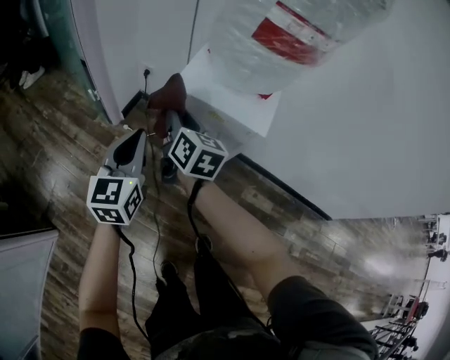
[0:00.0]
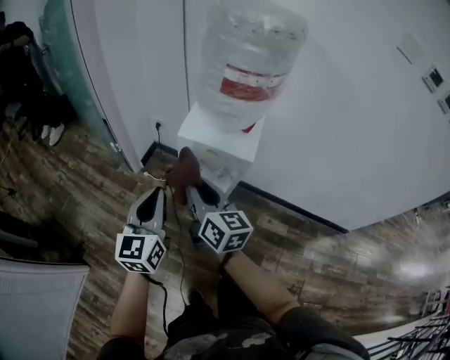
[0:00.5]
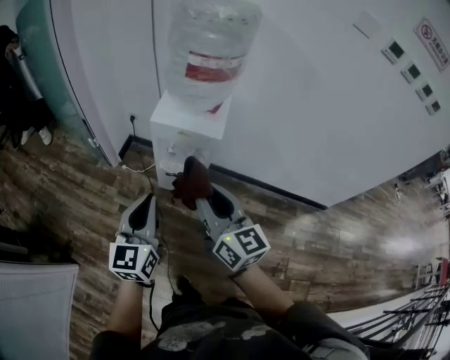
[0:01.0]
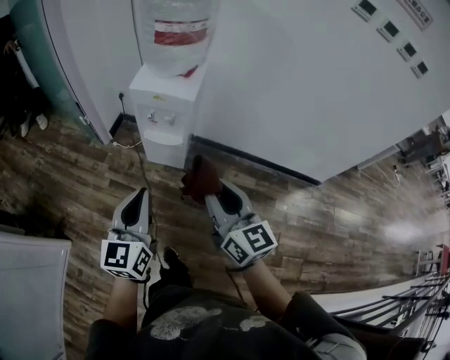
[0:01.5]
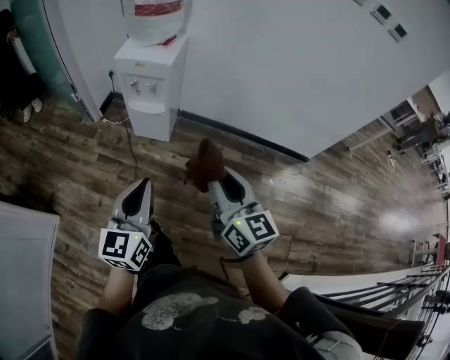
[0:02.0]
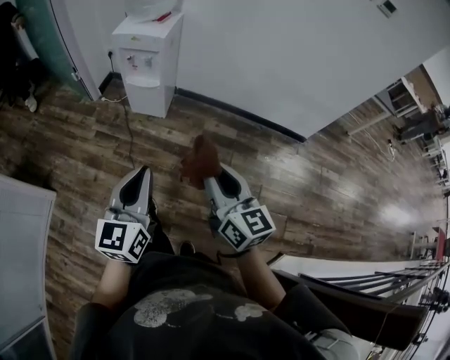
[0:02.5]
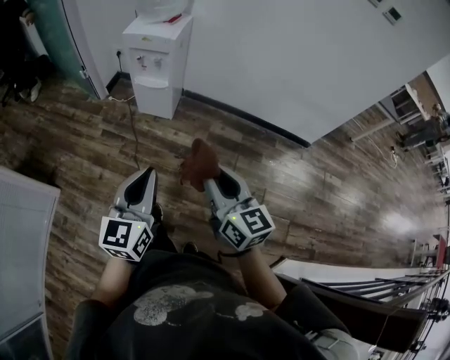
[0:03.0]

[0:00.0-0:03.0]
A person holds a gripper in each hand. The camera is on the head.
0:00.0 to 0:01.5: The right gripper shifts roughly 50 cm backward and to the right, and changes its angle by about 20 degrees. Meanwhile the left gripper goes some 35 cm backward.
0:01.5 to 0:03.0: The two grippers go roughly 30 cm backward and to the right.

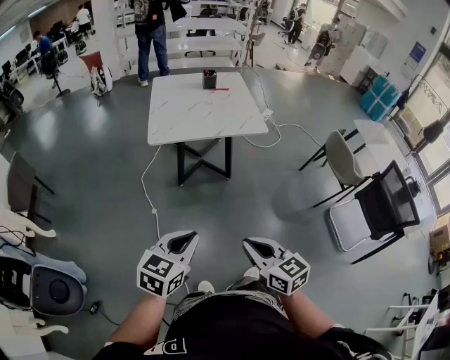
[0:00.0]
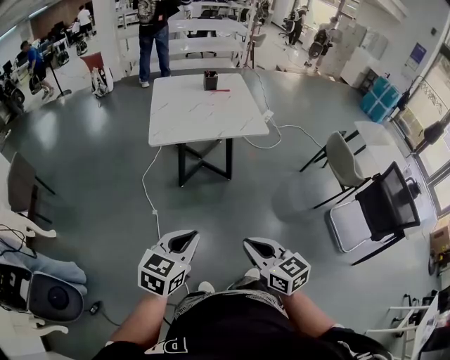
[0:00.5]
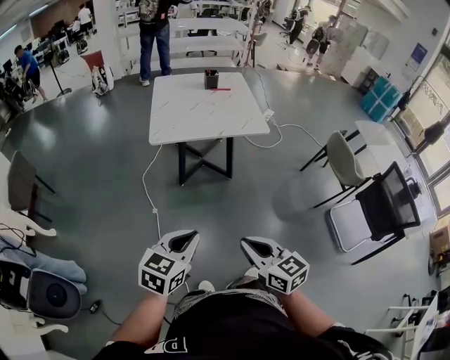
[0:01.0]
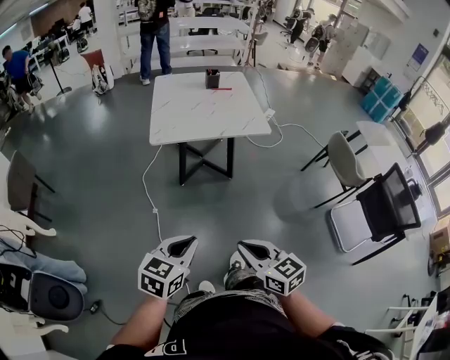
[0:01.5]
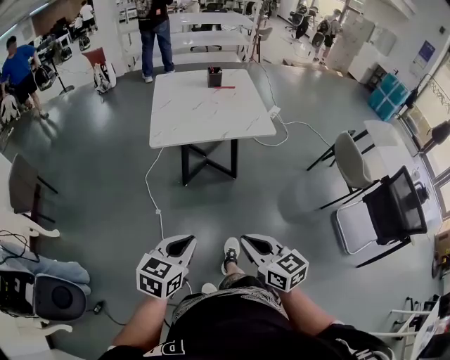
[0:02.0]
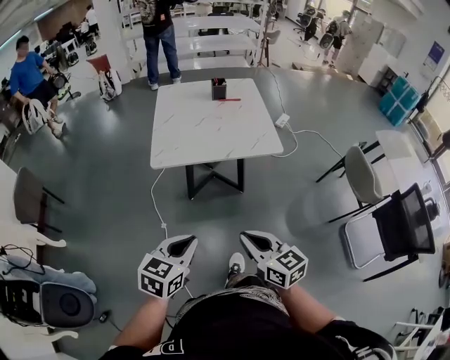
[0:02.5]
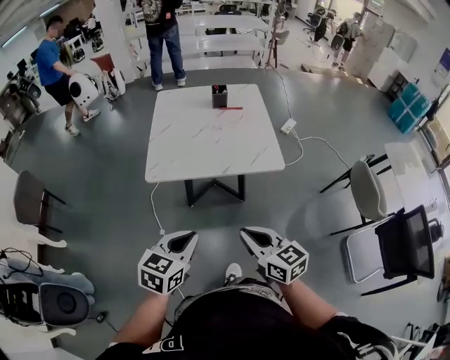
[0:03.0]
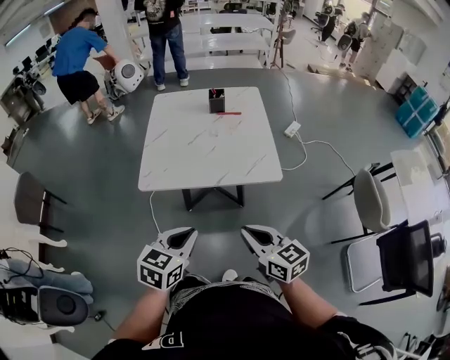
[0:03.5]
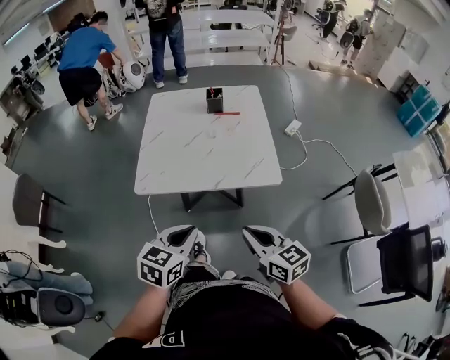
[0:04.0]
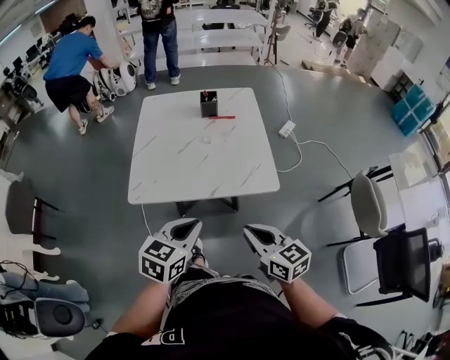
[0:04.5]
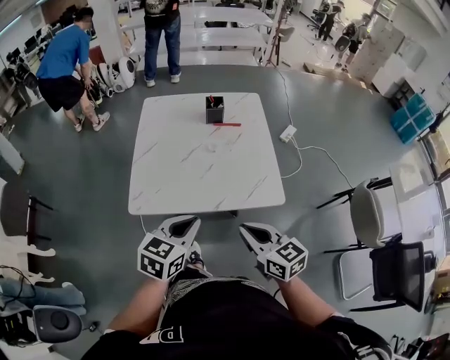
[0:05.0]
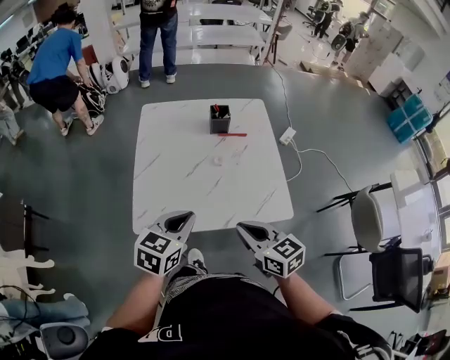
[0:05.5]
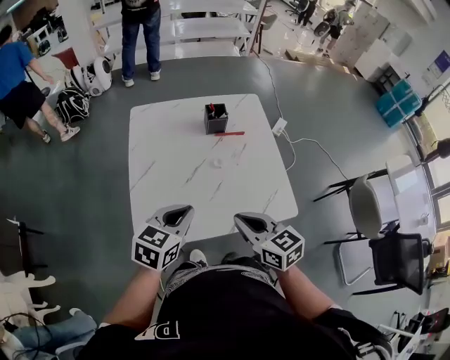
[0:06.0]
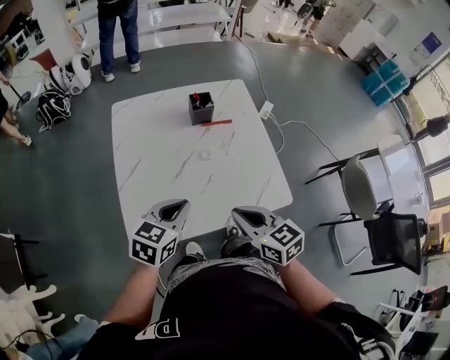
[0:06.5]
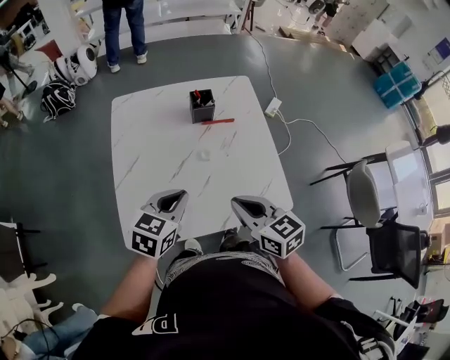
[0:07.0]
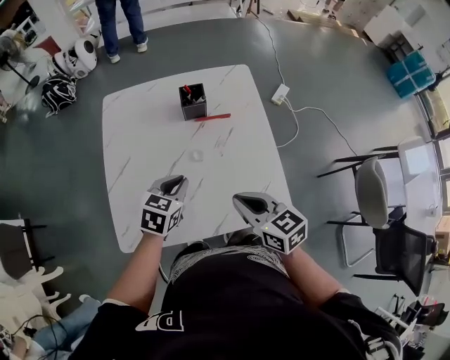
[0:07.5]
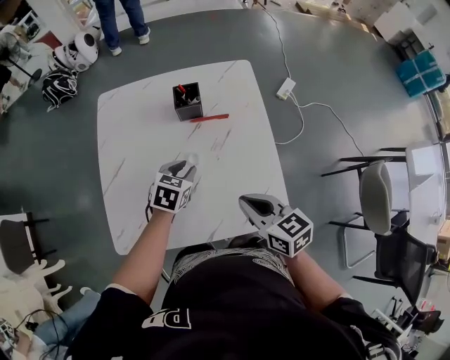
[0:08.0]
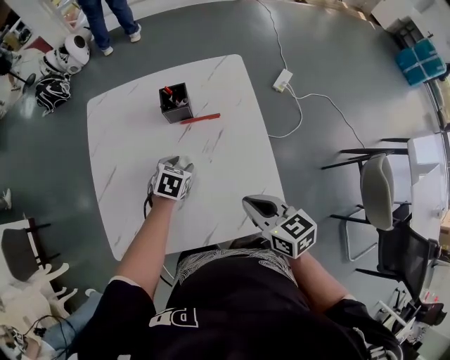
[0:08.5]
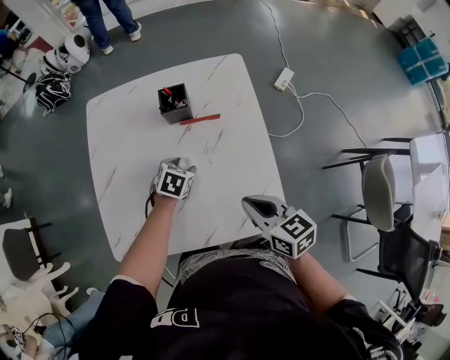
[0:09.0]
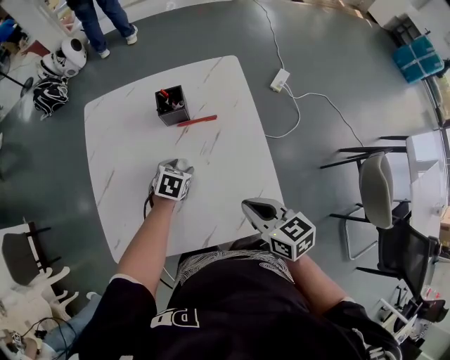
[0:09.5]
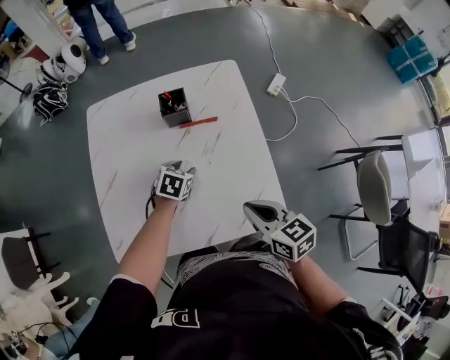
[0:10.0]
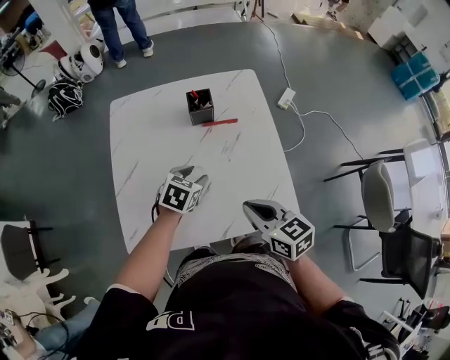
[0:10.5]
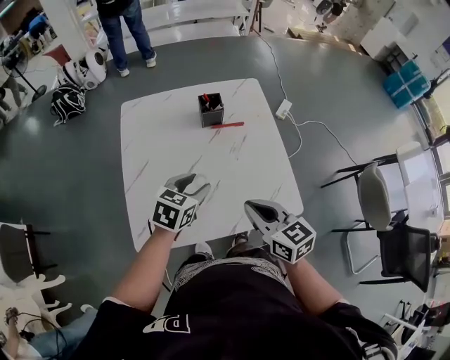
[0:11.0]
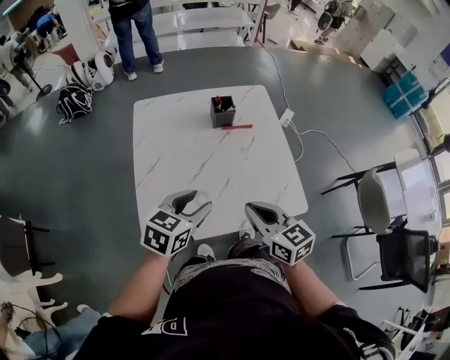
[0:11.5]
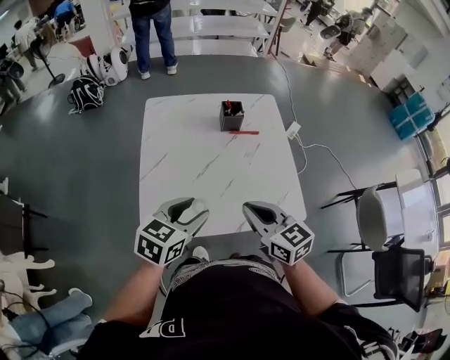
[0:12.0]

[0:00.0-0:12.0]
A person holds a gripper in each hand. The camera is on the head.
0:00.0 to 0:02.0: The left gripper ends up about 5 cm from where it was; the right gripper travels forward by some 5 cm.
0:02.0 to 0:04.0: The two grippers go some 35 cm forward and to the right.
0:04.0 to 0:06.0: The left gripper travels forward by approximately 30 cm. Meanwhile the right gripper shifts about 30 cm forward and to the left.
0:06.0 to 0:08.0: The left gripper is displaced forward, downward and to the right by approximately 30 cm, changes its angle by approximately 20 degrees, and opens its fingers. The right gripper shifts roughly 20 cm to the right, forward and downward.
0:08.0 to 0:10.0: The left gripper heads downward, covering about 5 cm, and opens its fingers.
0:10.0 to 0:12.0: The left gripper goes approximately 35 cm backward, upward and to the left, and rotates approximately 30 degrees. The right gripper shifts about 20 cm to the left, backward and upward.

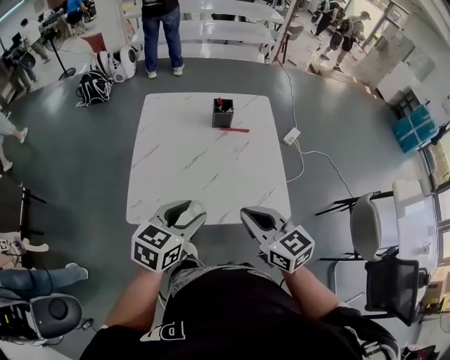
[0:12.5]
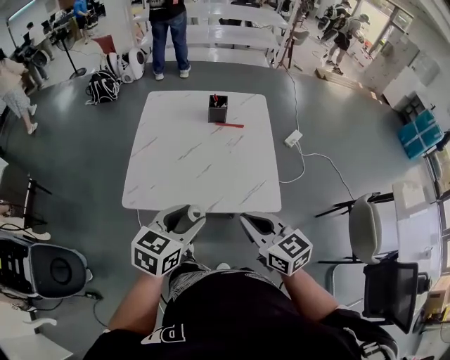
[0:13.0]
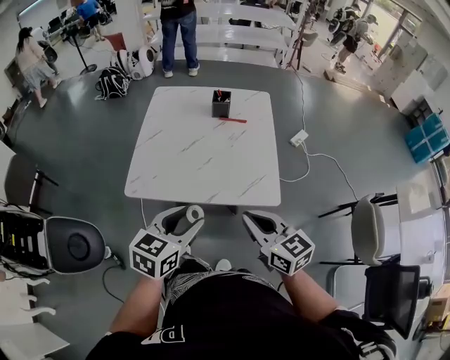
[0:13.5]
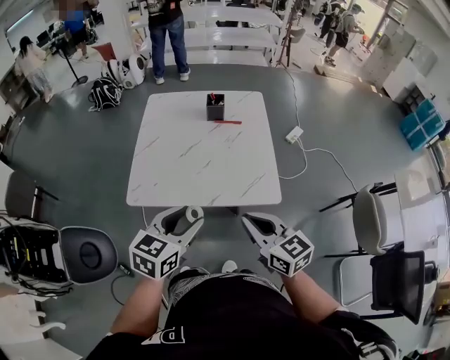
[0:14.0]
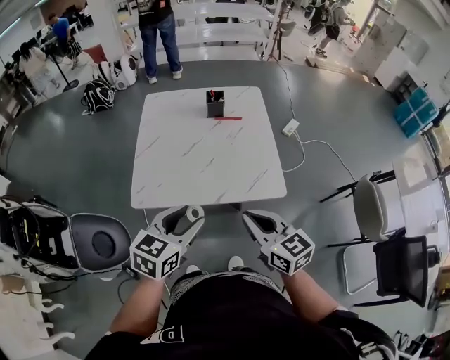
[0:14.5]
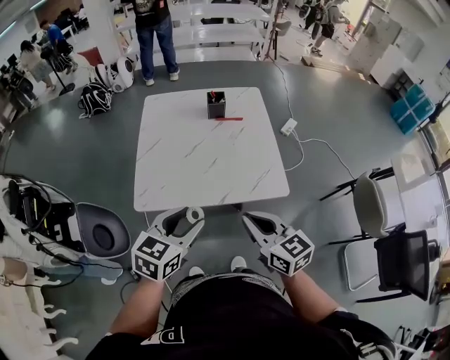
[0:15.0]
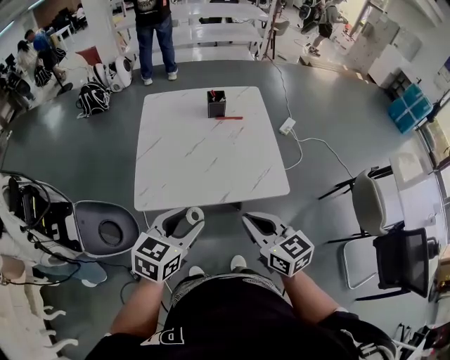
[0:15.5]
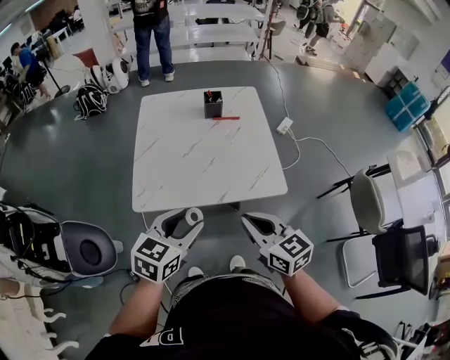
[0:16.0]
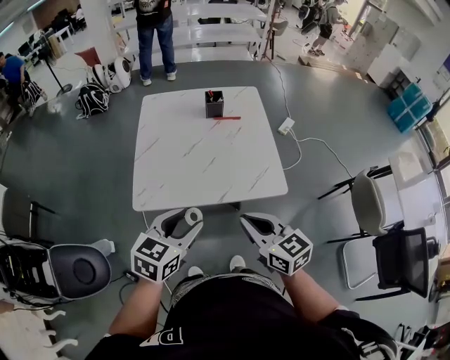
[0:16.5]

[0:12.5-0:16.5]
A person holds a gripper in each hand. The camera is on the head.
0:12.5 to 0:14.5: Both grippers travel together backward, about 10 cm.
0:14.5 to 0:16.5: The grippers make only small movements.

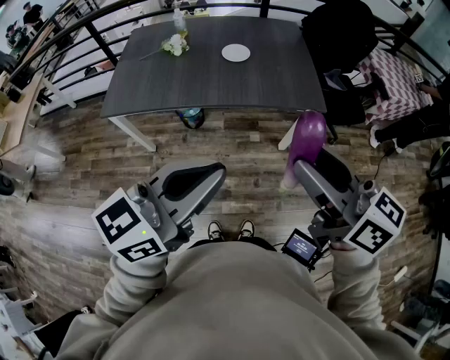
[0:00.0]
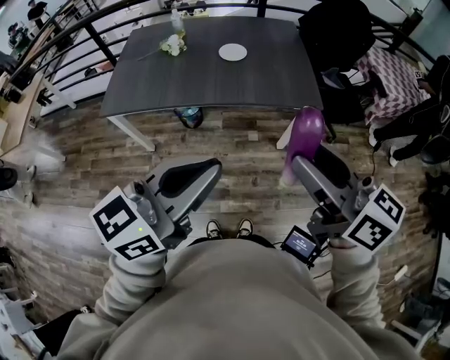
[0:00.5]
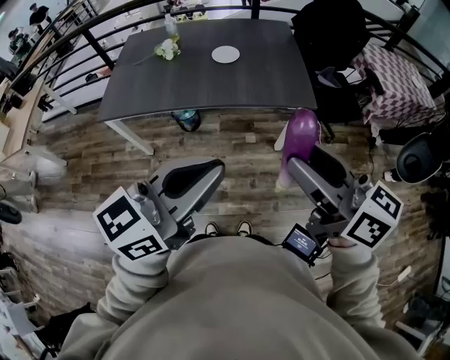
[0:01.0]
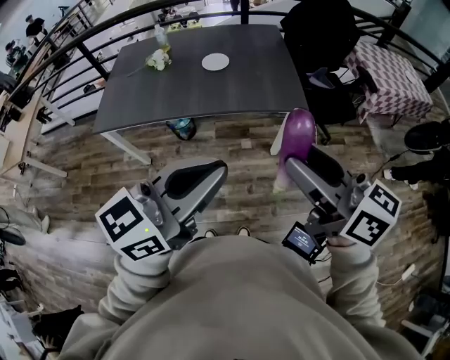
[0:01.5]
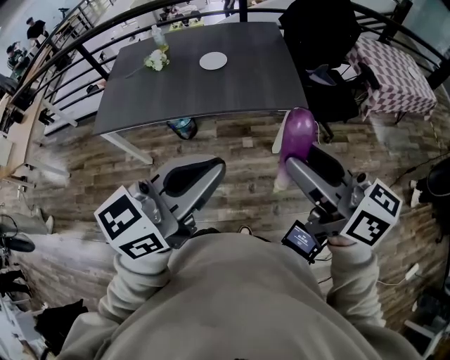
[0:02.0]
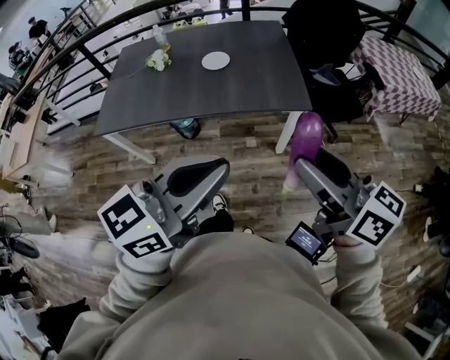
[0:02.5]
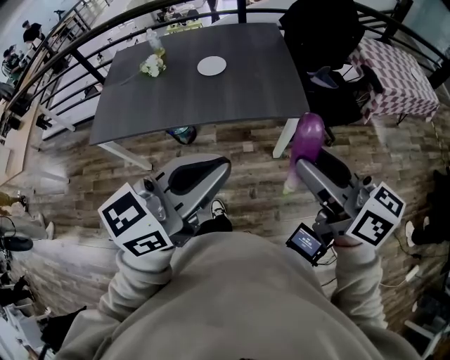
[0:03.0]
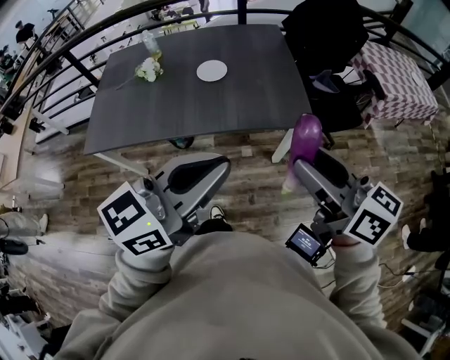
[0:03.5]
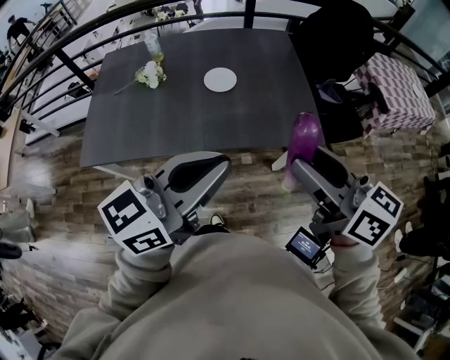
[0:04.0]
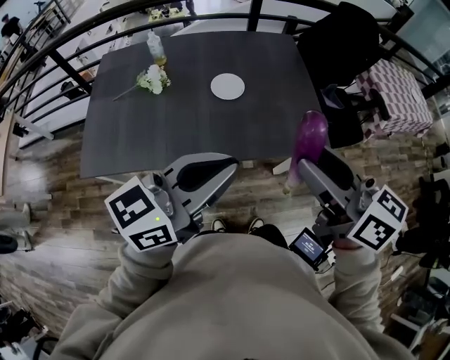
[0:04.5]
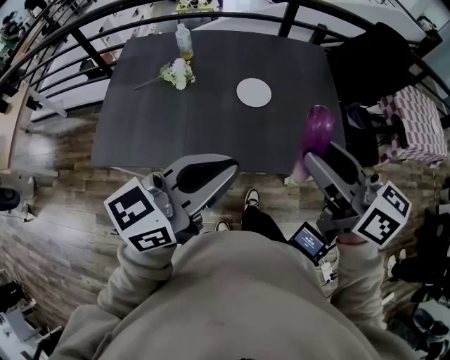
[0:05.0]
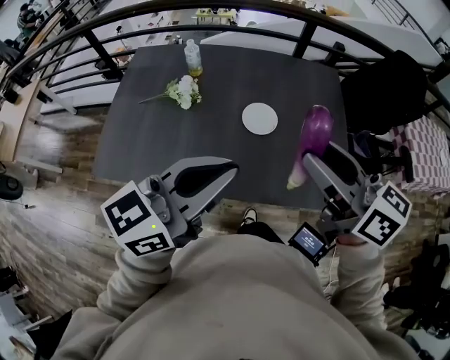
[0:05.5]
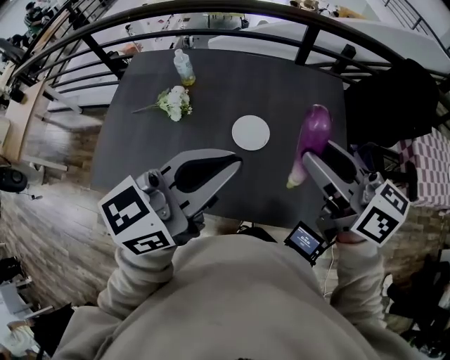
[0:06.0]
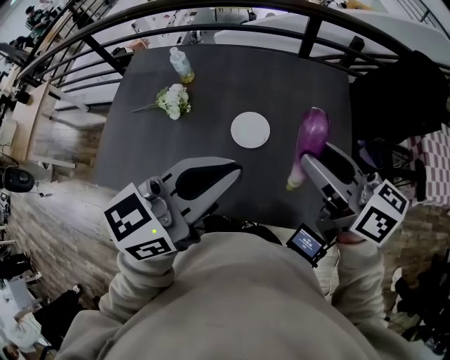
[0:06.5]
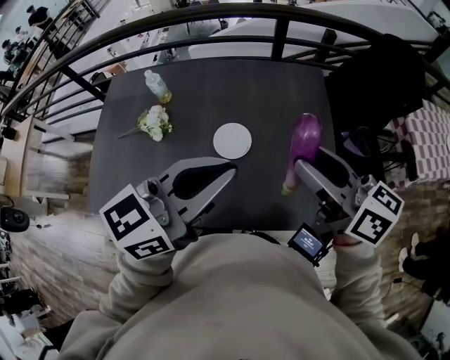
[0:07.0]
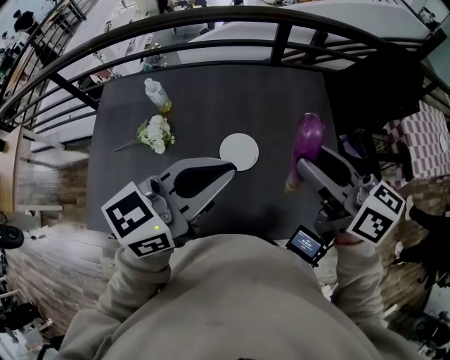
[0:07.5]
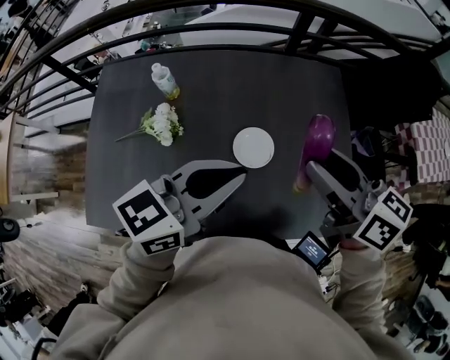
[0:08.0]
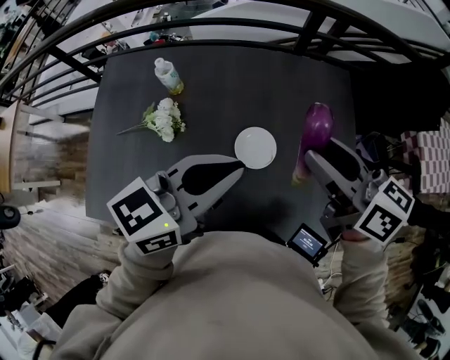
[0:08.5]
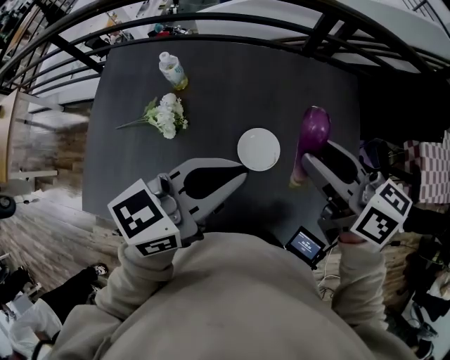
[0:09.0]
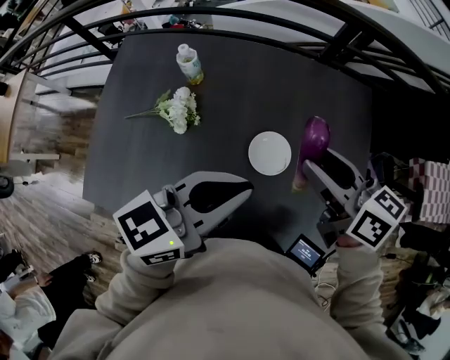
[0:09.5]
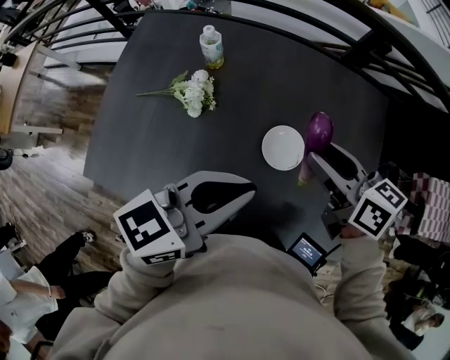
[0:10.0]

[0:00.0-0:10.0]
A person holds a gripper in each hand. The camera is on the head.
0:00.0 to 0:02.0: The grippers both shift to the right by approximately 10 cm.
0:02.0 to 0:04.0: The grippers both shift forward and to the left by approximately 25 cm.
0:04.0 to 0:06.0: The two grippers go some 30 cm forward.
0:06.0 to 0:08.0: The left gripper goes roughly 15 cm forward, downward and to the left, while the right gripper is displaced forward by approximately 10 cm.
0:08.0 to 0:10.0: The left gripper changes place by approximately 5 cm, while the right gripper travels downward, to the left and forward by some 15 cm.
